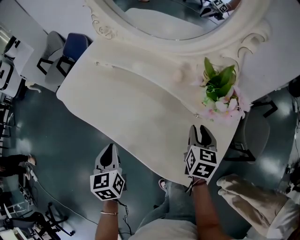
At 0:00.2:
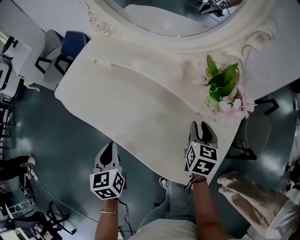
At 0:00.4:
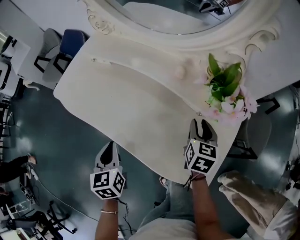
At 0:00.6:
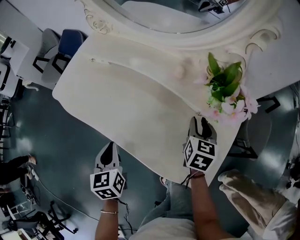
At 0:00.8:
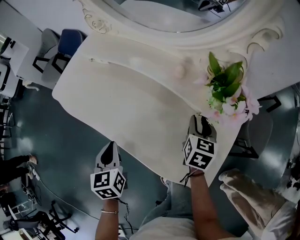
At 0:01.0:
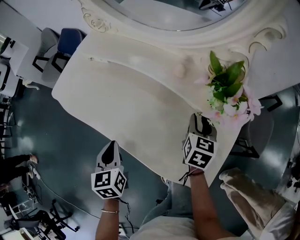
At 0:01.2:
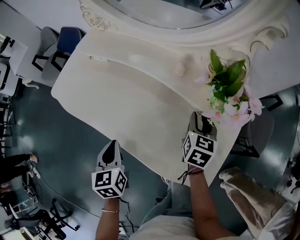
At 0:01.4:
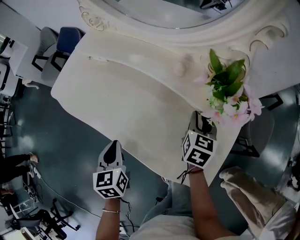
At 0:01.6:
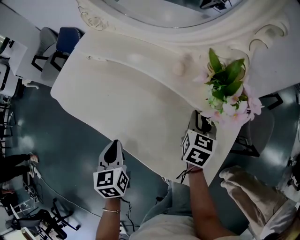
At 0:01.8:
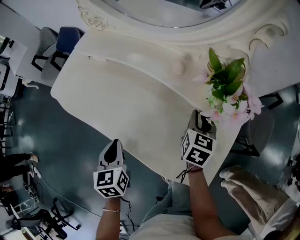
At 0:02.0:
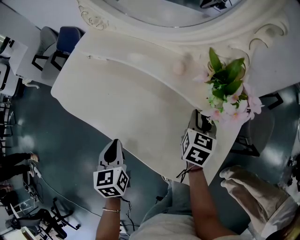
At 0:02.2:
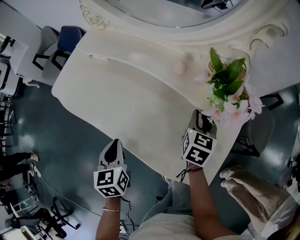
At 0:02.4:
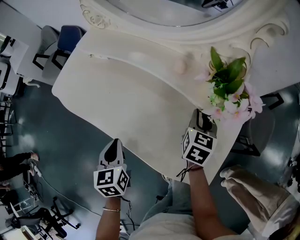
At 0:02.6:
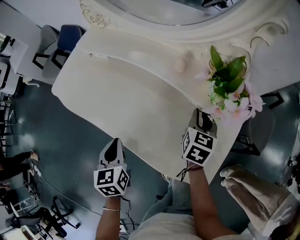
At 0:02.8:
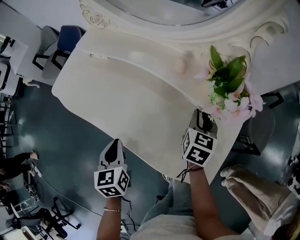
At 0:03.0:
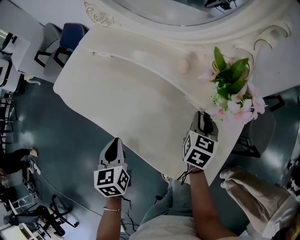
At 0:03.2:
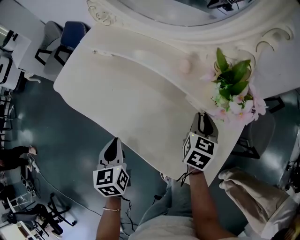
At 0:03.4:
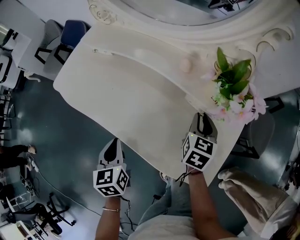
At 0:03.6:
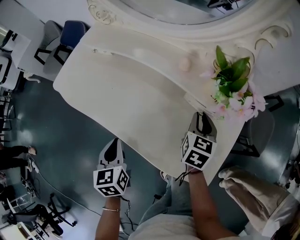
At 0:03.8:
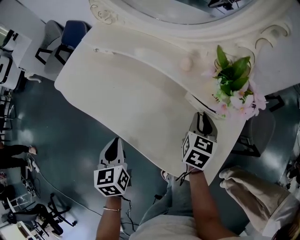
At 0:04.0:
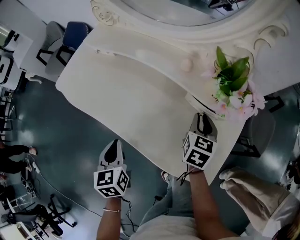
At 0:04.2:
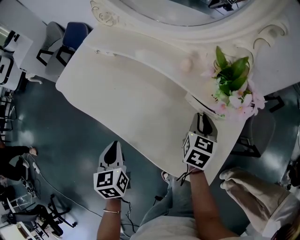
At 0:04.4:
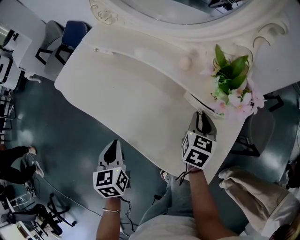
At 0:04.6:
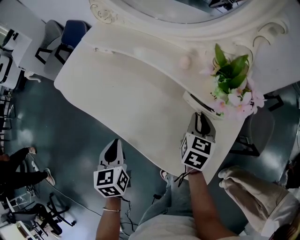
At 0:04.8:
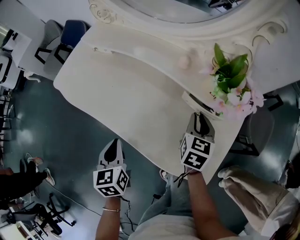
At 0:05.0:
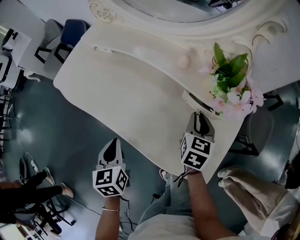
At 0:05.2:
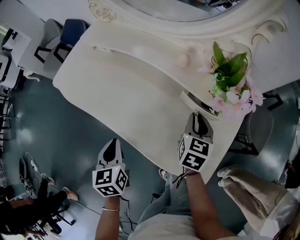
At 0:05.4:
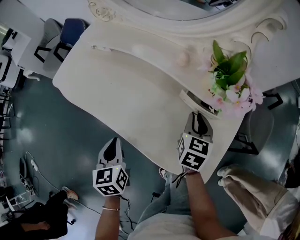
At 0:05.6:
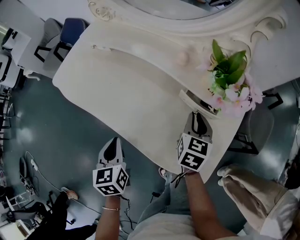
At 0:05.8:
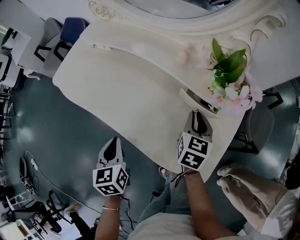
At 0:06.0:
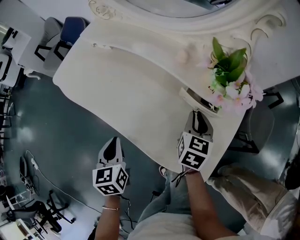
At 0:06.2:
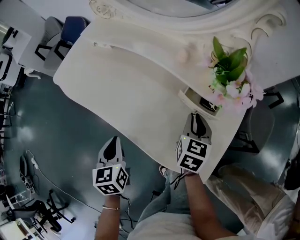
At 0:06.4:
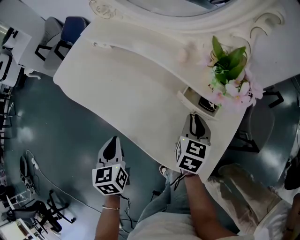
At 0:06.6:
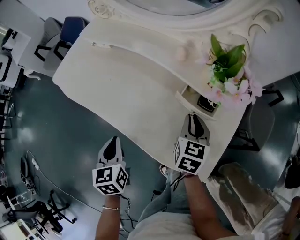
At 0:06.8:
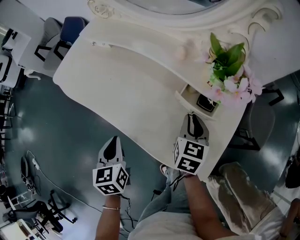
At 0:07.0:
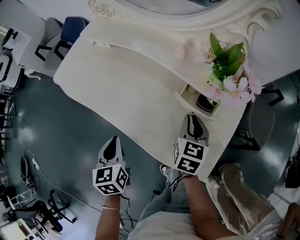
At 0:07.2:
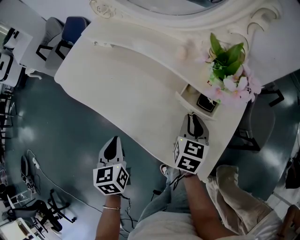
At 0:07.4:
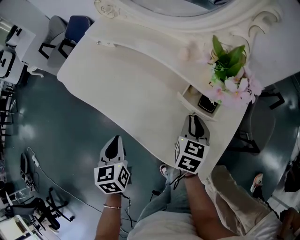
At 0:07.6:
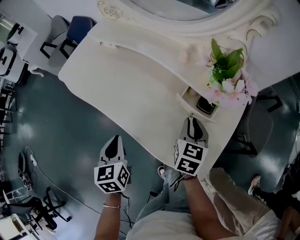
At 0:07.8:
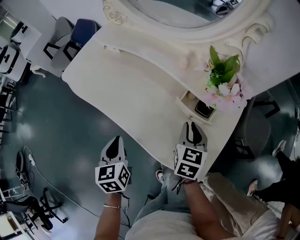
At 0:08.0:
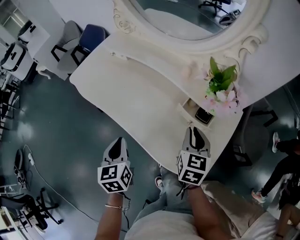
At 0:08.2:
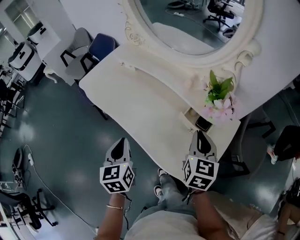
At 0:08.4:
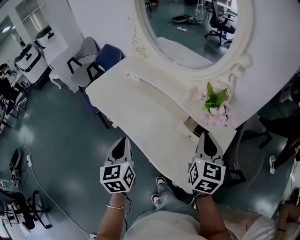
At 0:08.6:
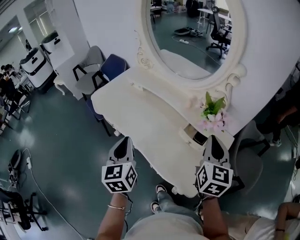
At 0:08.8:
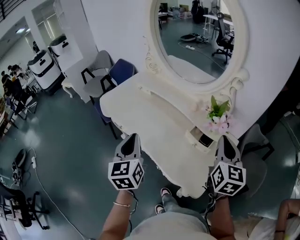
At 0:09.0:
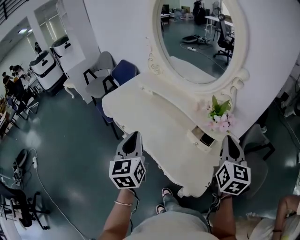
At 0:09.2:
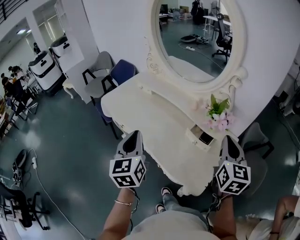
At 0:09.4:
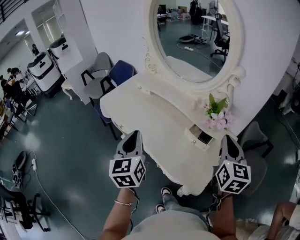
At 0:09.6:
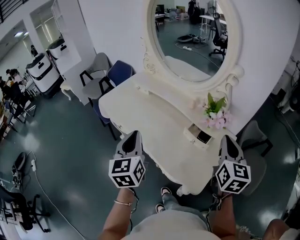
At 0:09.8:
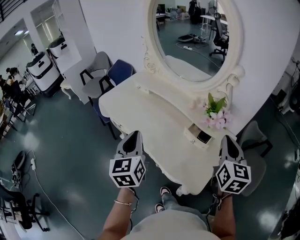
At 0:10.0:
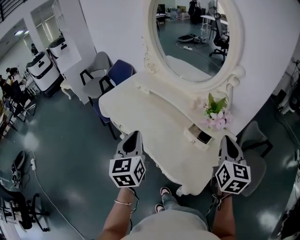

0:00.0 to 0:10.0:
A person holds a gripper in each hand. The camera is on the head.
0:00.0 to 0:01.4: The right gripper changes place by some 5 cm.
0:01.4 to 0:02.8: Both grippers stay put.
0:02.8 to 0:05.8: The grippers make only small movements.
0:05.8 to 0:07.2: There are only small adjustments of the grippers.
0:07.2 to 0:08.6: Both grippers move upward, about 20 cm. The right gripper turns by some 30 degrees. The left gripper rotates some 20 degrees.
0:08.6 to 0:10.0: The right gripper ends up some 5 cm from where it was.

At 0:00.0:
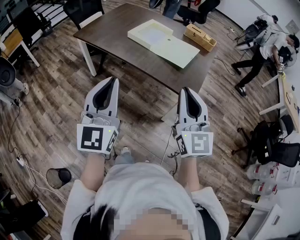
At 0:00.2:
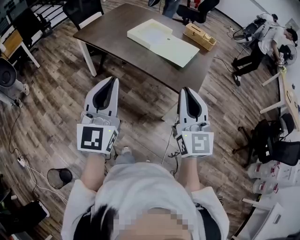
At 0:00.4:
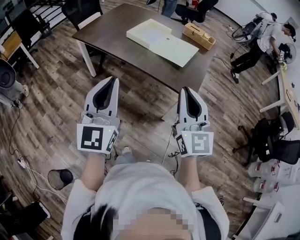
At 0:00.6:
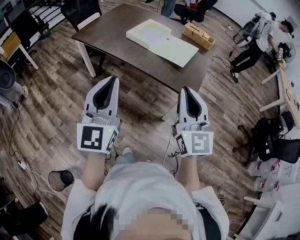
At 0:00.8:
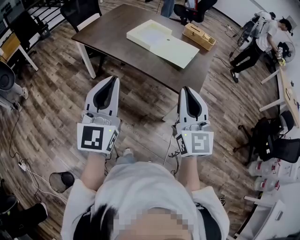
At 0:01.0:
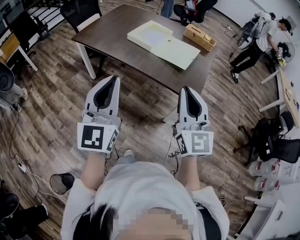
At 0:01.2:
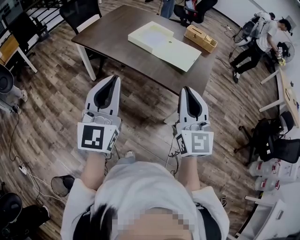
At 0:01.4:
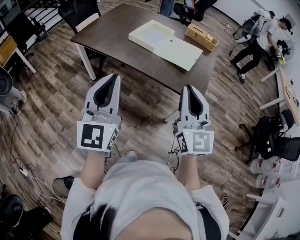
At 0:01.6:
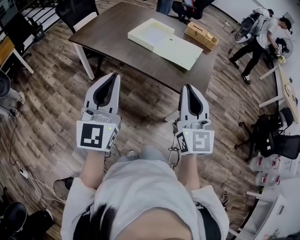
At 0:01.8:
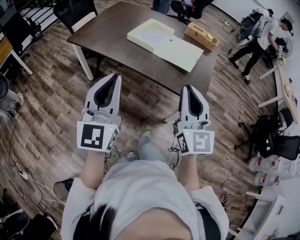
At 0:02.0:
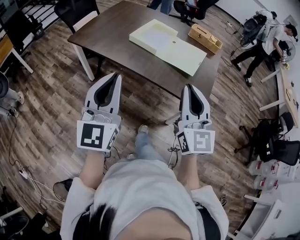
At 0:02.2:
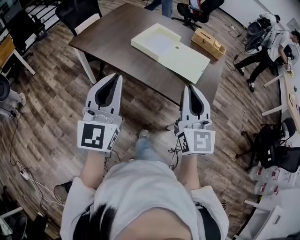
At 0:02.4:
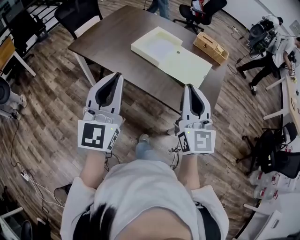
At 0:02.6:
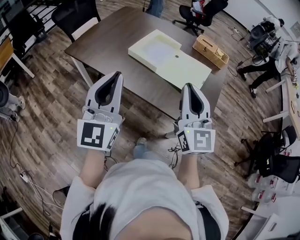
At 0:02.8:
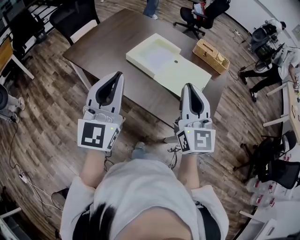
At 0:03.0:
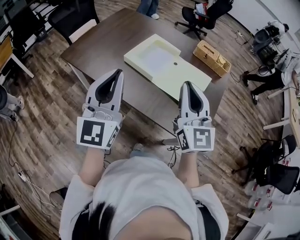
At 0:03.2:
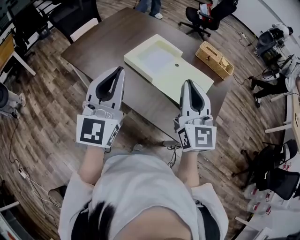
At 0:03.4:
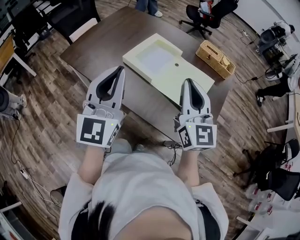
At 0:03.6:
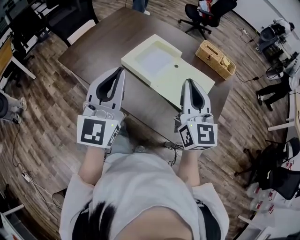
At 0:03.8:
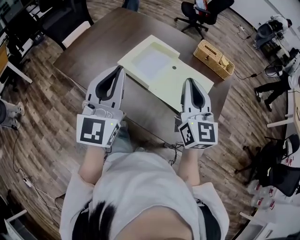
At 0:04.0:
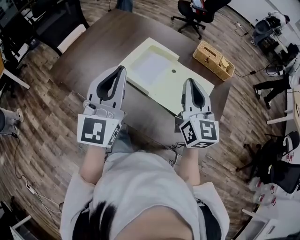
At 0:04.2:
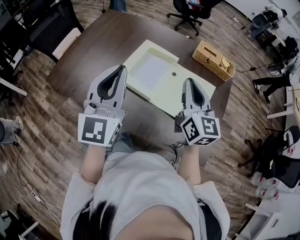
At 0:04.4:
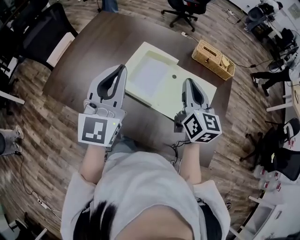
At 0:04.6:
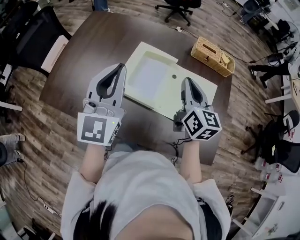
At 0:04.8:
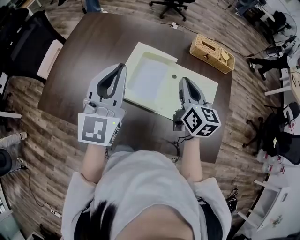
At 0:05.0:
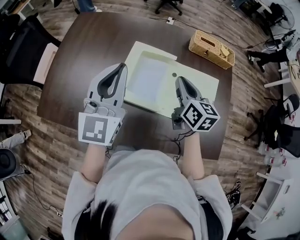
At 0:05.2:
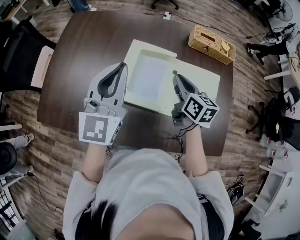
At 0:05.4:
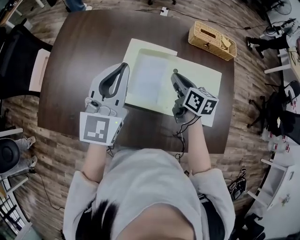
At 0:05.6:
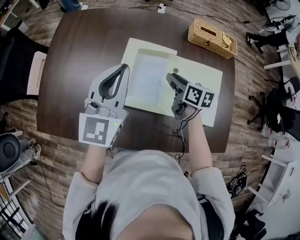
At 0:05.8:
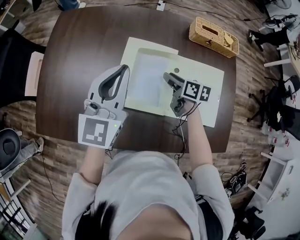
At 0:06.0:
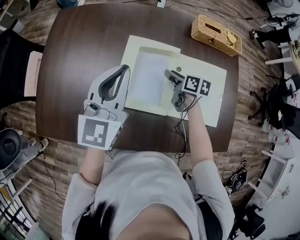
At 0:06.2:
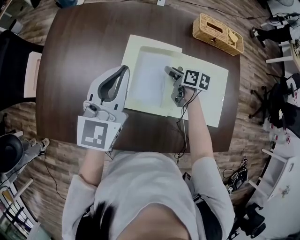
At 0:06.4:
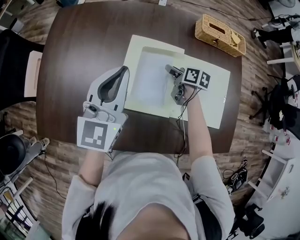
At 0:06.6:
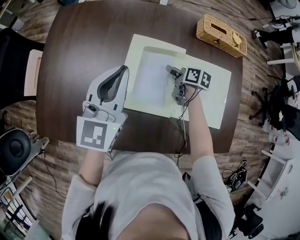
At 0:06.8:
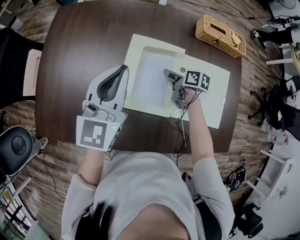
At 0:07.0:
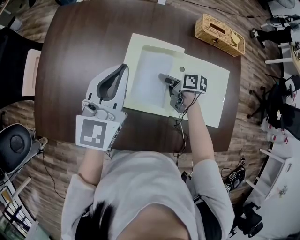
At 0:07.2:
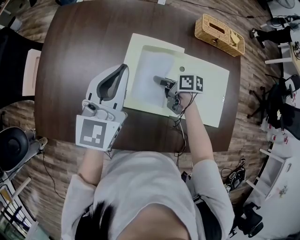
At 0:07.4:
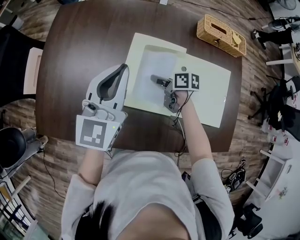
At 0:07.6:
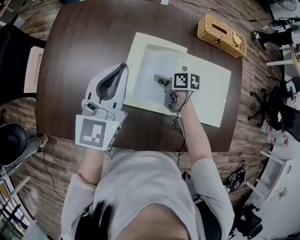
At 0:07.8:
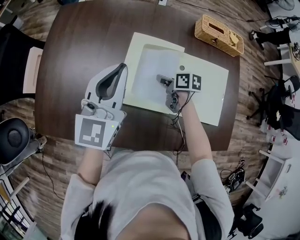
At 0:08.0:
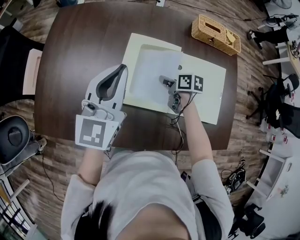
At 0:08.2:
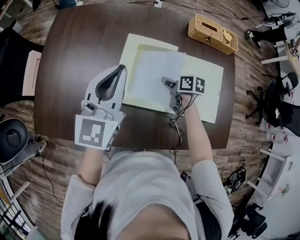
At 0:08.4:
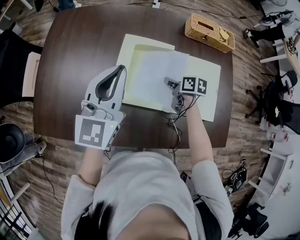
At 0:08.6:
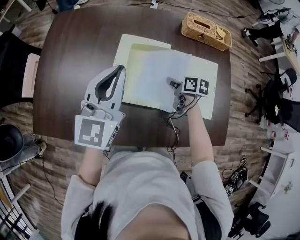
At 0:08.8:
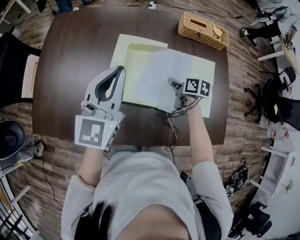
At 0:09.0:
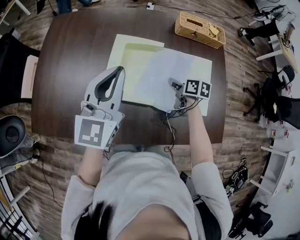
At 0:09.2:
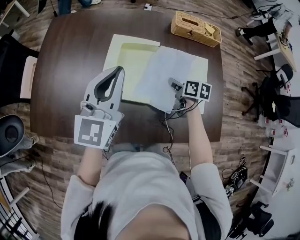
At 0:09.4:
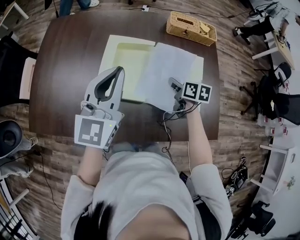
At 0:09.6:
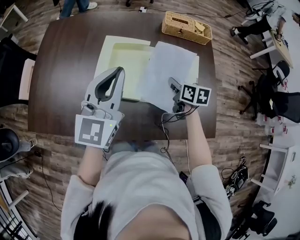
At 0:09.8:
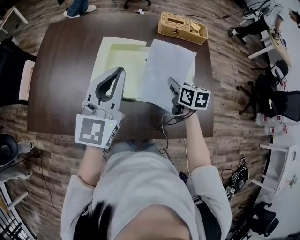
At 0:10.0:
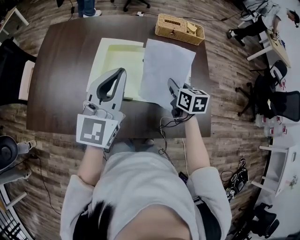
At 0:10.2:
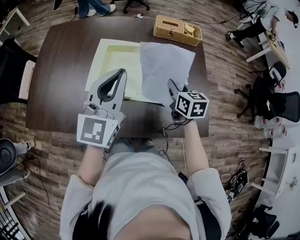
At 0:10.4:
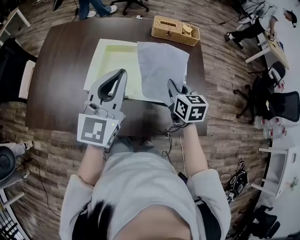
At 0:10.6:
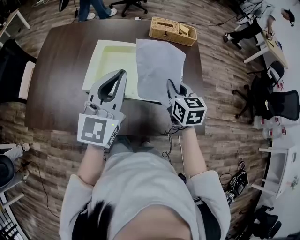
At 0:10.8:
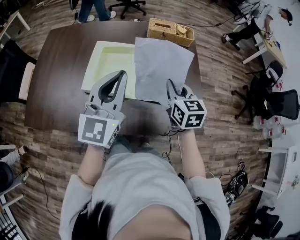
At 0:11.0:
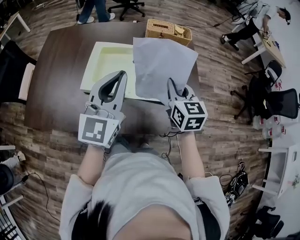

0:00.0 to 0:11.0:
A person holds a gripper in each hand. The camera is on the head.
0:00.0 to 0:01.6: The right gripper is displaced to the left and forward by about 10 cm, while the left gripper moves forward and to the left, some 10 cm.
0:01.6 to 0:03.2: The two grippers go some 30 cm forward.
0:03.2 to 0:04.8: The left gripper moves forward, some 30 cm, and rotates roughly 20 degrees. Meanwhile the right gripper travels forward and downward by some 30 cm, and rotates approximately 40 degrees.
0:04.8 to 0:06.2: The left gripper goes roughly 15 cm forward and downward. The right gripper travels downward and forward by roughly 30 cm, swivels approximately 40 degrees, and opens.
0:06.2 to 0:07.8: The right gripper is displaced to the left by approximately 5 cm, and closes up.
0:07.8 to 0:09.4: The right gripper moves to the right, backward and upward, about 20 cm. The left gripper is displaced backward and to the right by approximately 15 cm.
0:09.4 to 0:11.0: The left gripper travels to the right and backward by some 15 cm, while the right gripper heads upward, backward and to the right, covering approximately 25 cm, and swivels some 40 degrees.

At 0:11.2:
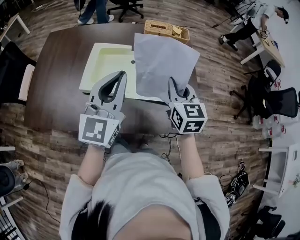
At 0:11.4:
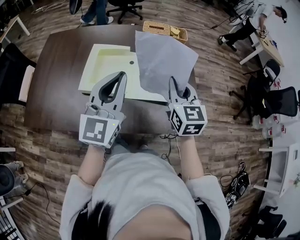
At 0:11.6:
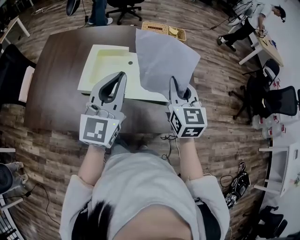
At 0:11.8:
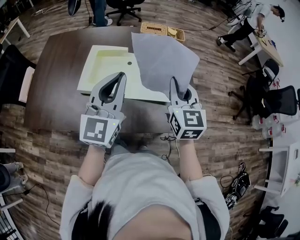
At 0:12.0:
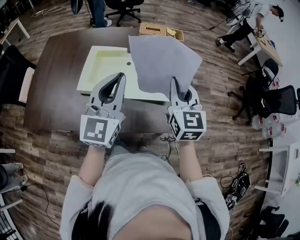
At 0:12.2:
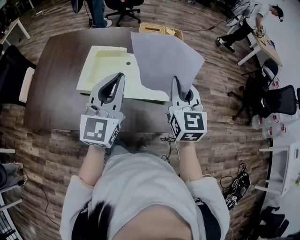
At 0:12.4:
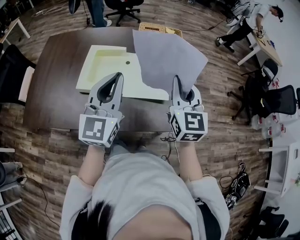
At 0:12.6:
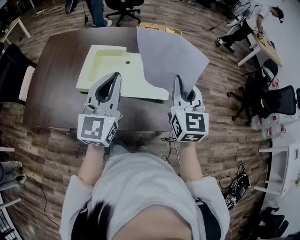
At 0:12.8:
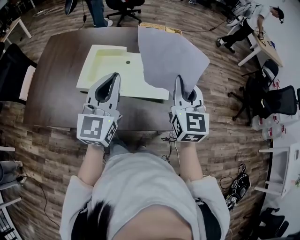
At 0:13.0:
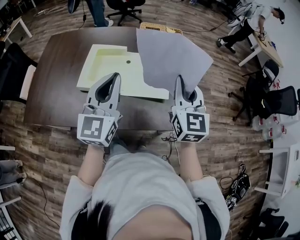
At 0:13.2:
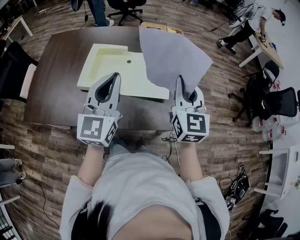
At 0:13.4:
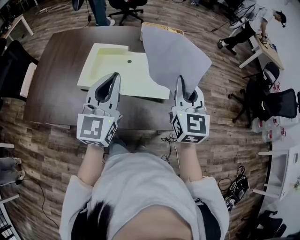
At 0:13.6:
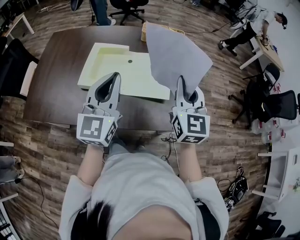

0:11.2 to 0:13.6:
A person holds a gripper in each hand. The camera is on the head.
0:11.2 to 0:12.4: The right gripper travels upward by some 5 cm.
0:12.4 to 0:13.6: The grippers make only small movements.
